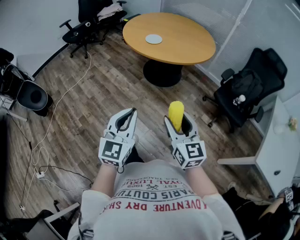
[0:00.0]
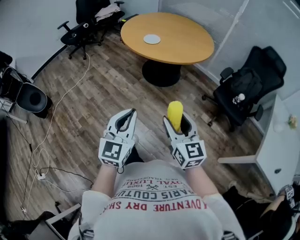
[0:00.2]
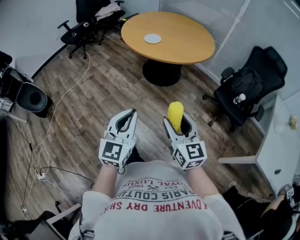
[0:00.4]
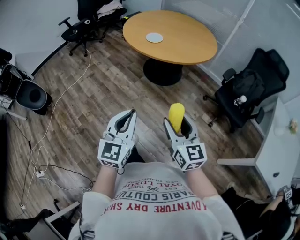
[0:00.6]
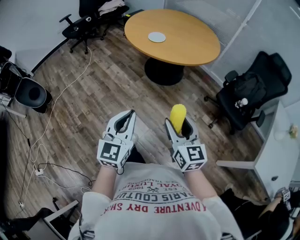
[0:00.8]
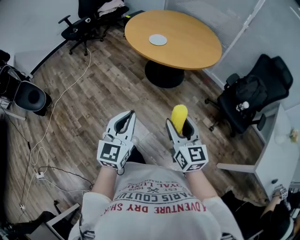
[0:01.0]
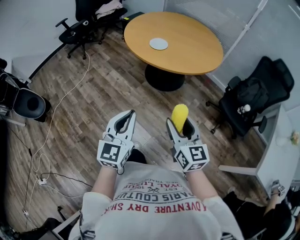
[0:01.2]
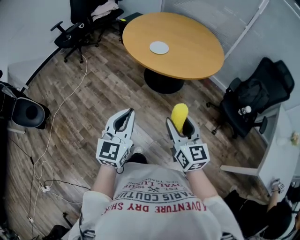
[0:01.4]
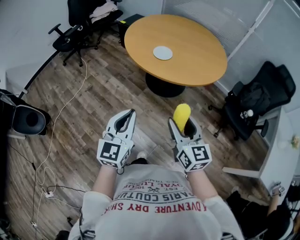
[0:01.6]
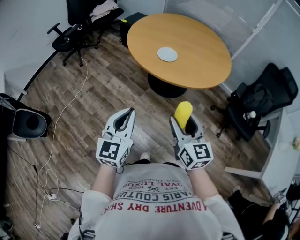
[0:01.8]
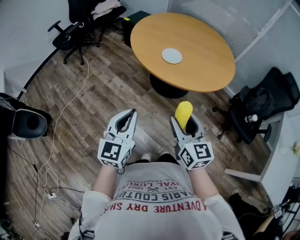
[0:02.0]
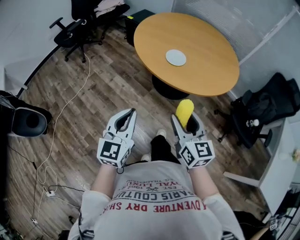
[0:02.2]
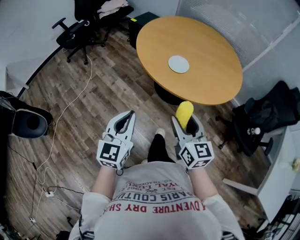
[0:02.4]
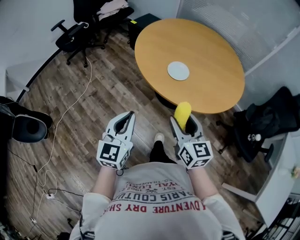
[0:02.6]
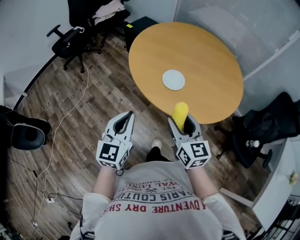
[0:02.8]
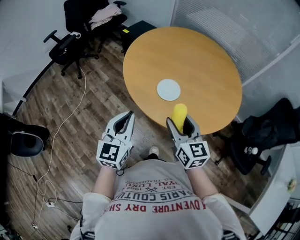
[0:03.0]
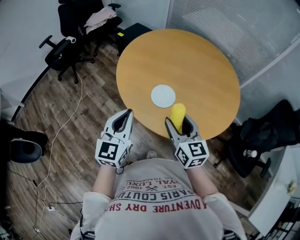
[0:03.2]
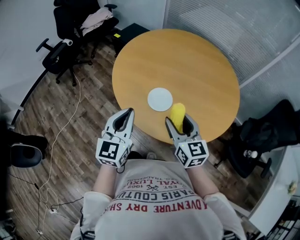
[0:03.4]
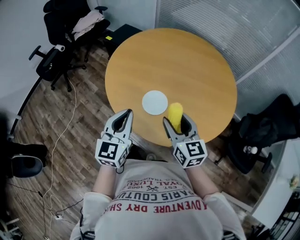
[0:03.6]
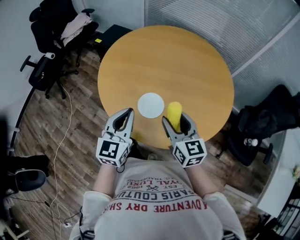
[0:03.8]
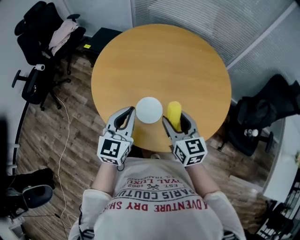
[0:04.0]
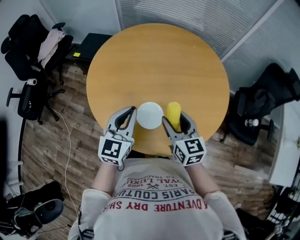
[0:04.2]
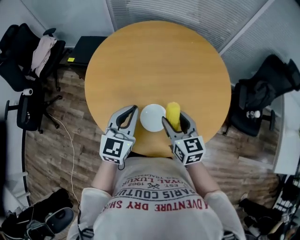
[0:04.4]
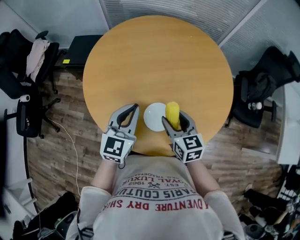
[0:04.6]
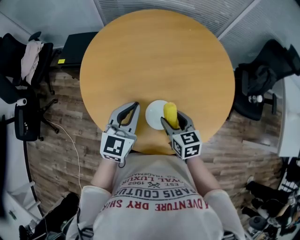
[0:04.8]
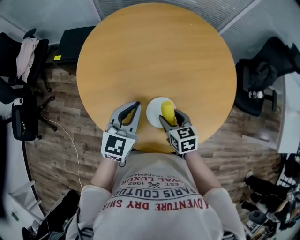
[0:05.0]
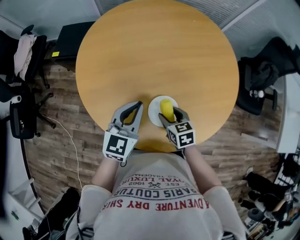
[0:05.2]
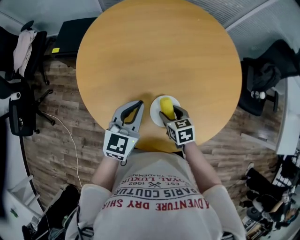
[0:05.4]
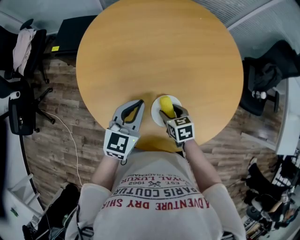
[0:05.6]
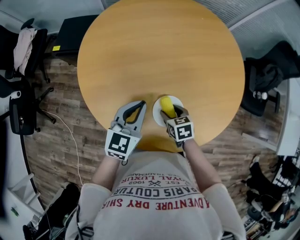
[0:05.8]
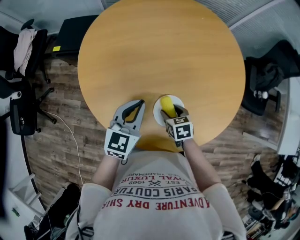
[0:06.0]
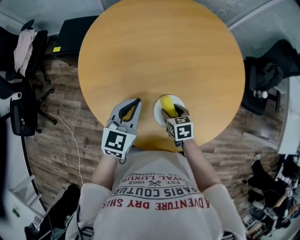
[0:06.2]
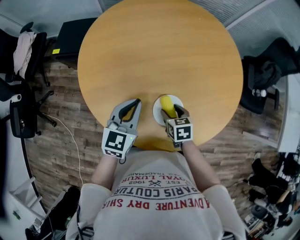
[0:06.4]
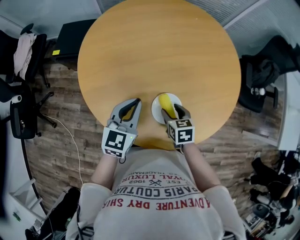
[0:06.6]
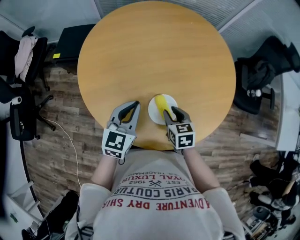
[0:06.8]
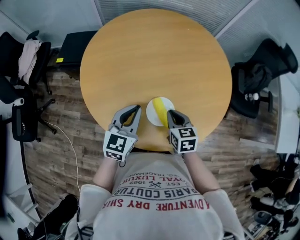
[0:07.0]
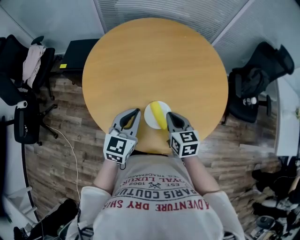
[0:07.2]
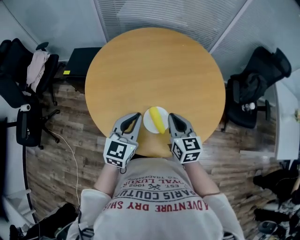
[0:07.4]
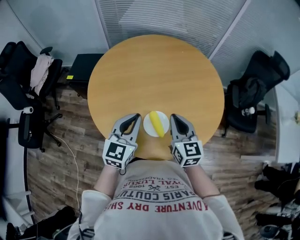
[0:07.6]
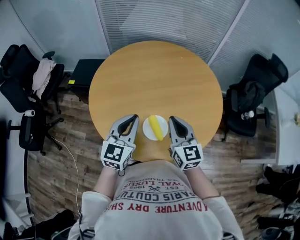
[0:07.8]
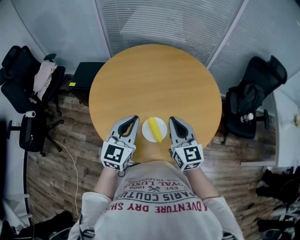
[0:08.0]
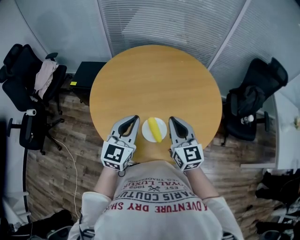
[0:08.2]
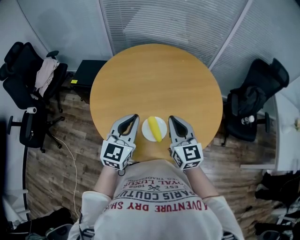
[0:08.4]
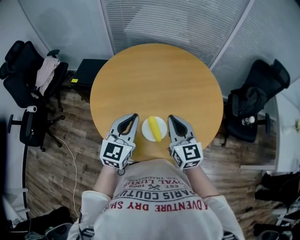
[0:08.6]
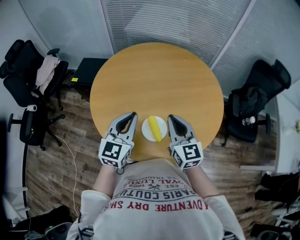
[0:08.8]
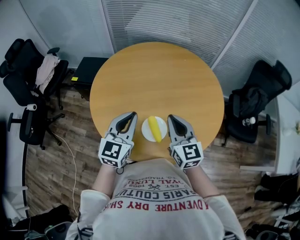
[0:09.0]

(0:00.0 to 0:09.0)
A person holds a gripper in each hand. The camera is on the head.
0:00.0 - 0:01.6: The grippers both shift forward and to the left by some 25 cm.
0:01.6 - 0:03.0: The grippers both shift forward by approximately 30 cm.
0:03.0 - 0:04.4: The left gripper shifts by roughly 30 cm, and rotates some 30 degrees, while the right gripper ends up approximately 20 cm from where it was, and swivels roughly 30 degrees.
0:04.4 - 0:06.0: The left gripper goes roughly 10 cm downward; the right gripper travels downward by some 20 cm, and angles its fingers downward, by some 40 degrees.
0:06.0 - 0:07.6: The right gripper travels upward by some 25 cm, tilts its fingers approximately 40 degrees upward, and closes its fingers. The left gripper goes some 15 cm upward and backward.
0:07.6 - 0:09.0: The grippers move only a little.

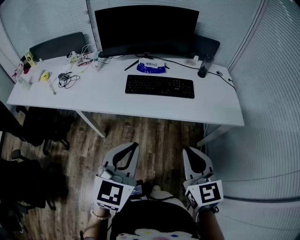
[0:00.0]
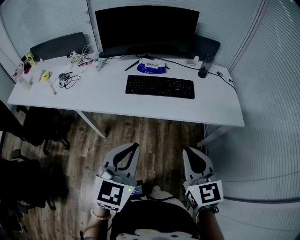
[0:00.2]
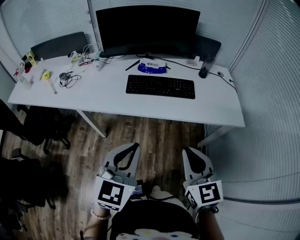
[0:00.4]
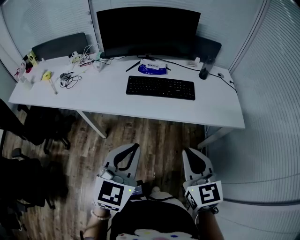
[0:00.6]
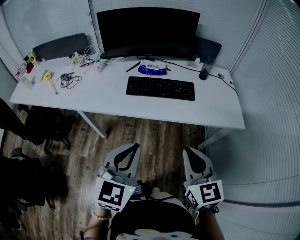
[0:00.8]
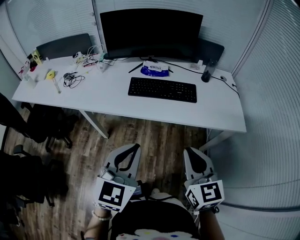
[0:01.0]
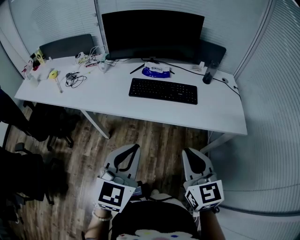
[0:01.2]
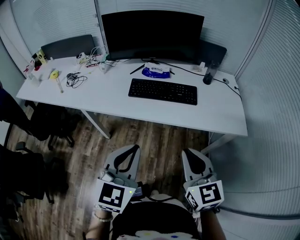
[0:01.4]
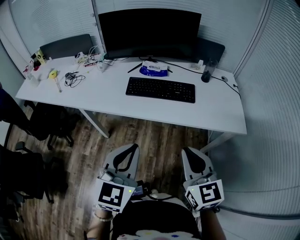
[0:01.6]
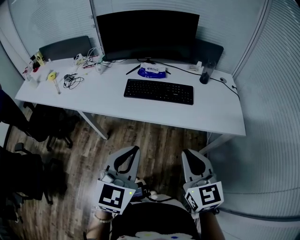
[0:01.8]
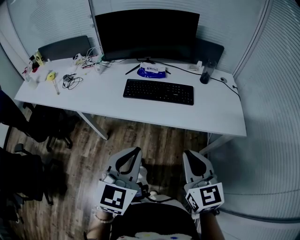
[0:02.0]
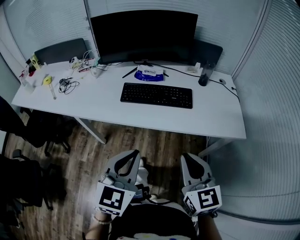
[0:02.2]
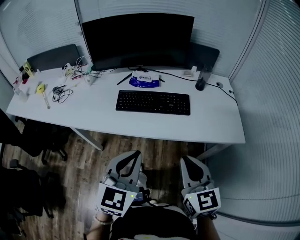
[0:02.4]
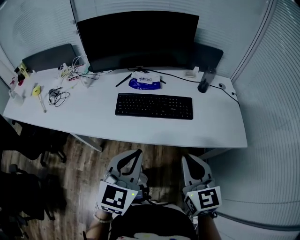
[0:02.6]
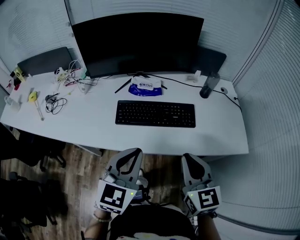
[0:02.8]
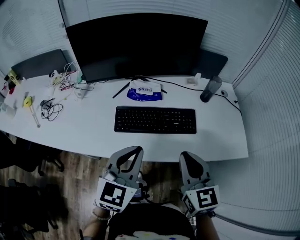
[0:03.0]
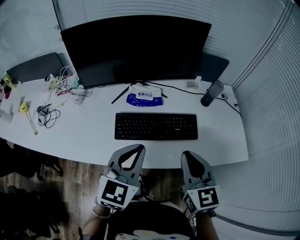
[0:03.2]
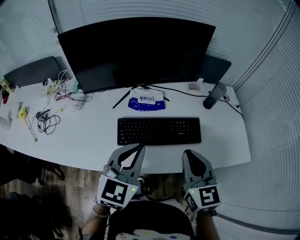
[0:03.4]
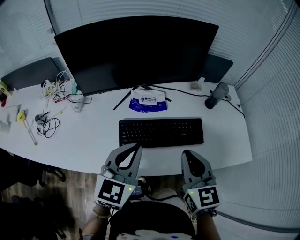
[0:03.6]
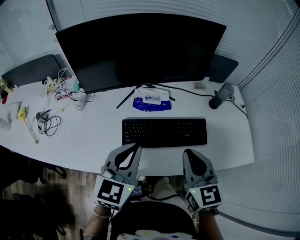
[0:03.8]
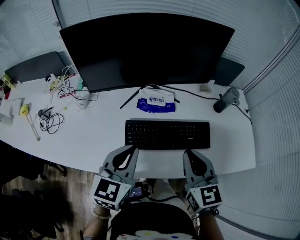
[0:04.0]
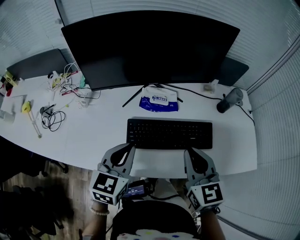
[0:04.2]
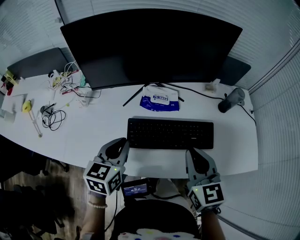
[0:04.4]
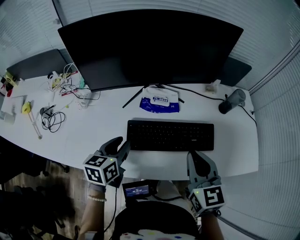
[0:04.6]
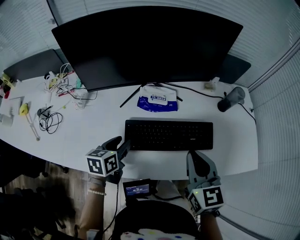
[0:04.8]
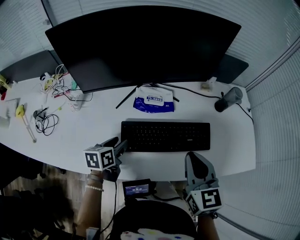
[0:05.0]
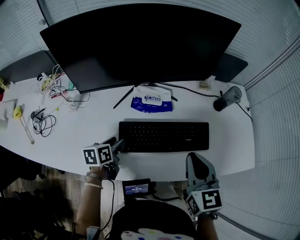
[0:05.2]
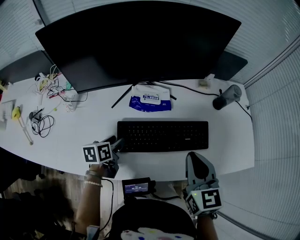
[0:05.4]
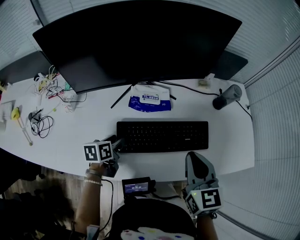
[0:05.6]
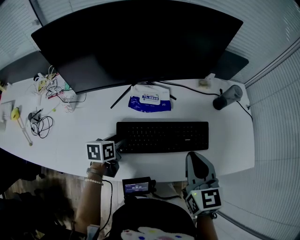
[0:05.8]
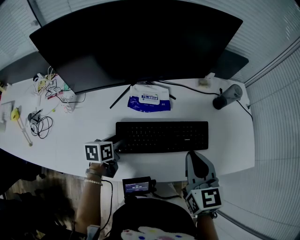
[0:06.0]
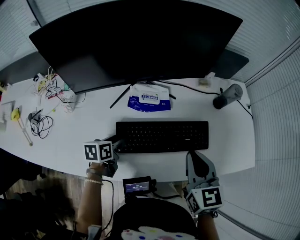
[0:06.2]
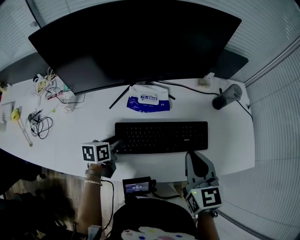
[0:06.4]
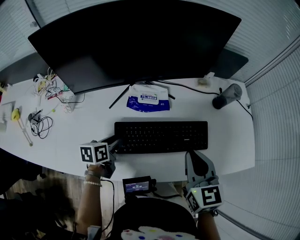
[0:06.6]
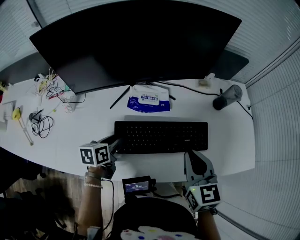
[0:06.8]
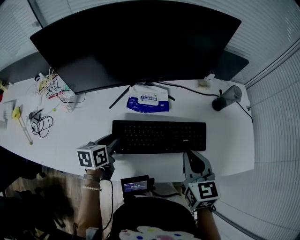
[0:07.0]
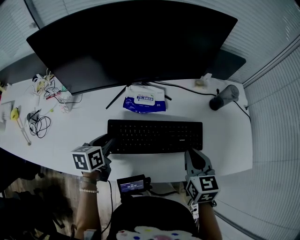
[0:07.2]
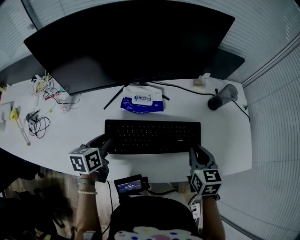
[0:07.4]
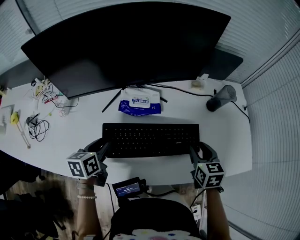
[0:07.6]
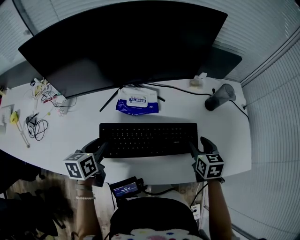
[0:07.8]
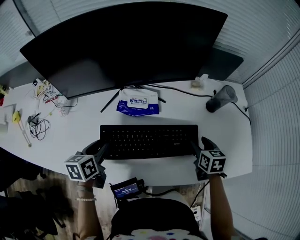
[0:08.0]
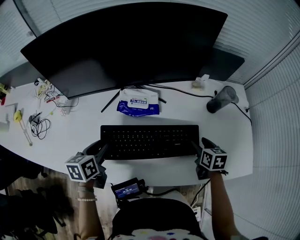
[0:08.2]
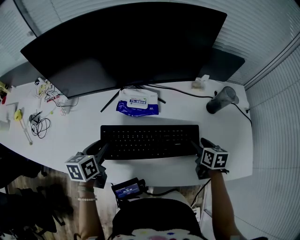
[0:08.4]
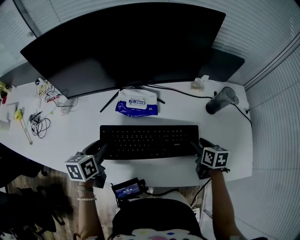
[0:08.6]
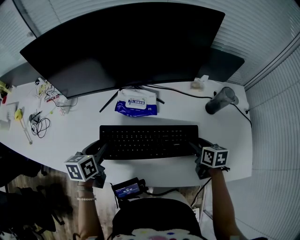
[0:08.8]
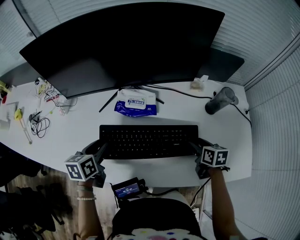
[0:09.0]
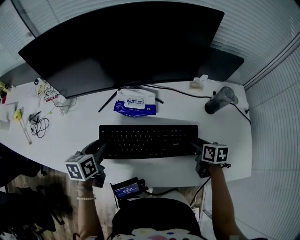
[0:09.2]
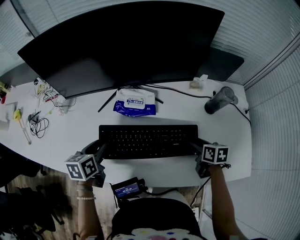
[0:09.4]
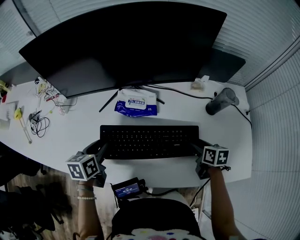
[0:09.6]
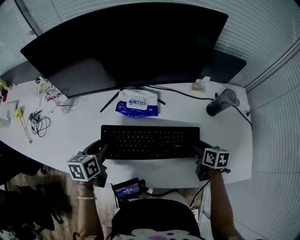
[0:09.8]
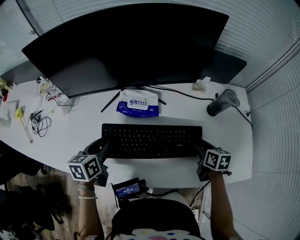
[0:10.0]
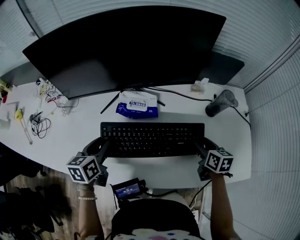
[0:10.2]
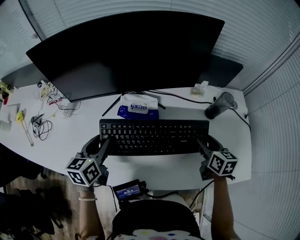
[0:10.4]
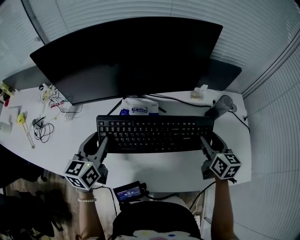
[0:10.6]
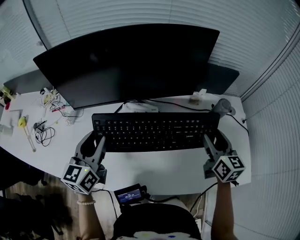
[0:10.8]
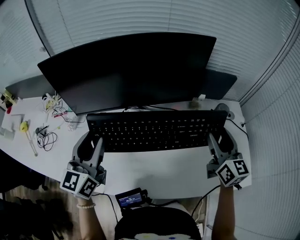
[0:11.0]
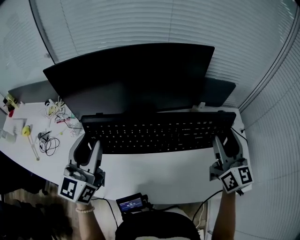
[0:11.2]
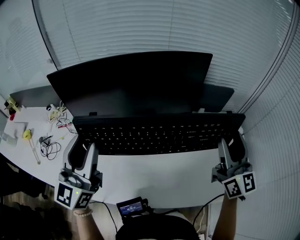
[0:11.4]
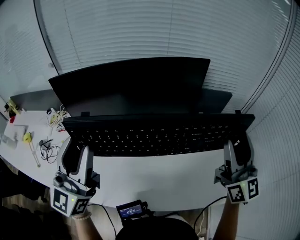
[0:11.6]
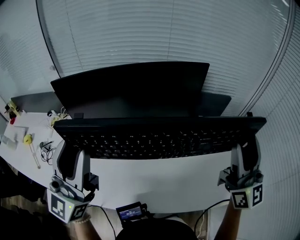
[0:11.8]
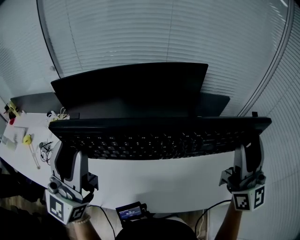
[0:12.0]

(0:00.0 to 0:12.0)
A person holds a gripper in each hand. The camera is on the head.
0:00.0 - 0:01.6: The grippers move only a little.
0:01.6 - 0:03.0: The grippers both shift forward by approximately 20 cm.
0:03.0 - 0:04.4: The left gripper heads to the left, forward and downward, covering about 20 cm, and rotates about 20 degrees, while the right gripper shifts roughly 15 cm forward and to the left.
0:04.4 - 0:06.0: The left gripper shifts approximately 15 cm downward, turns by approximately 30 degrees, and opens its fingers.
0:06.0 - 0:07.6: The left gripper goes roughly 5 cm upward. Meanwhile the right gripper travels downward, to the right and forward by approximately 15 cm, and opens.
0:07.6 - 0:09.0: The right gripper moves downward, about 5 cm, turns by some 20 degrees, and opens.
0:09.0 - 0:10.4: The two grippers go about 5 cm upward.
0:10.4 - 0:12.0: Both grippers travel together upward, some 35 cm. The left gripper tips its fingers upward by about 60 degrees. Meanwhile the right gripper angles its fingers upward, by about 60 degrees.

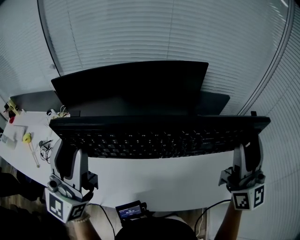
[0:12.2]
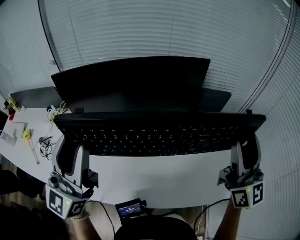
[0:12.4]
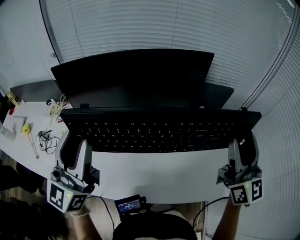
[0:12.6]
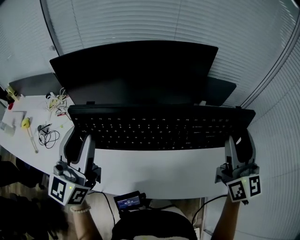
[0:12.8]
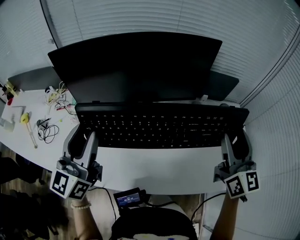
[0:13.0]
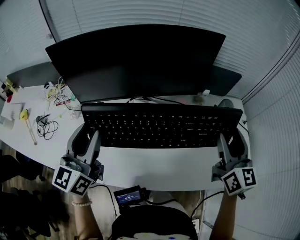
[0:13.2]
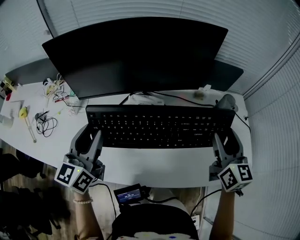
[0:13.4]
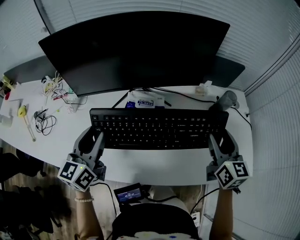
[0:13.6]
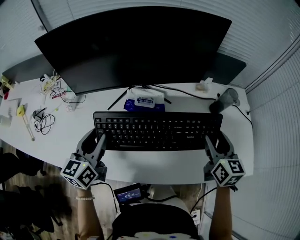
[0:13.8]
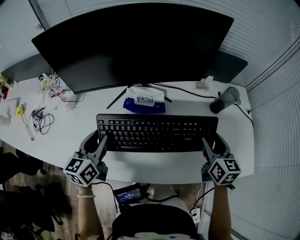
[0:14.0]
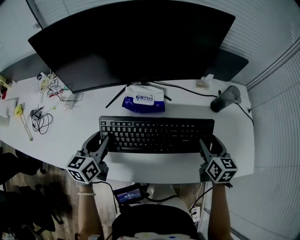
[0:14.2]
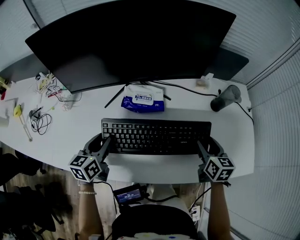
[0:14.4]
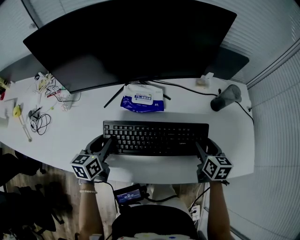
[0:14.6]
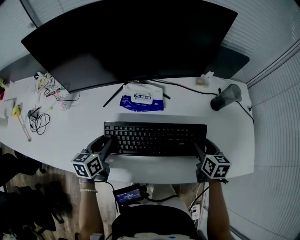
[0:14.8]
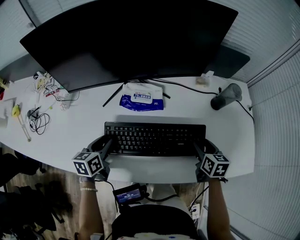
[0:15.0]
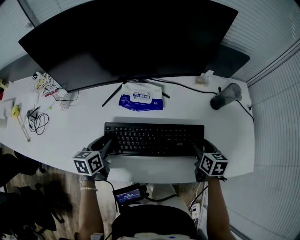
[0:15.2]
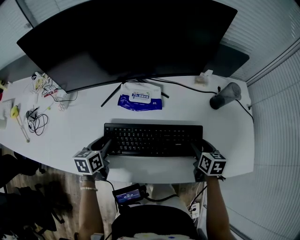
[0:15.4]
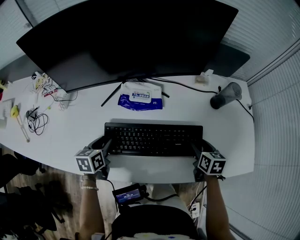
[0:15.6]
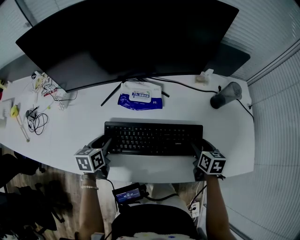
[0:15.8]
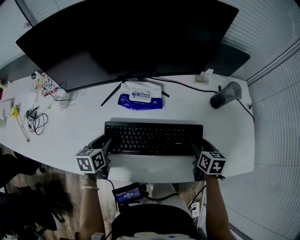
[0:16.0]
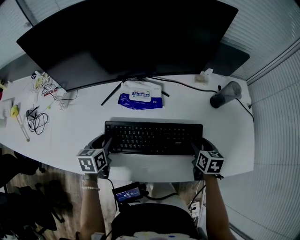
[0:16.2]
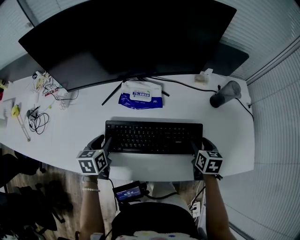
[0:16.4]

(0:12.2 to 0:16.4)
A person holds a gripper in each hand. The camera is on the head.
0:12.2 - 0:13.6: Both grippers travel together downward, approximately 25 cm. The right gripper tilts its fingers approximately 40 degrees downward; the left gripper angles its fingers downward, by approximately 40 degrees.
0:13.6 - 0:15.0: Both grippers move downward, approximately 20 cm. The right gripper changes its angle by approximately 30 degrees, while the left gripper turns by about 30 degrees.
0:15.0 - 0:16.4: There are only small adjustments of the grippers.
